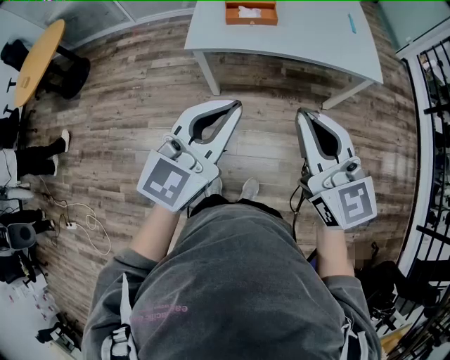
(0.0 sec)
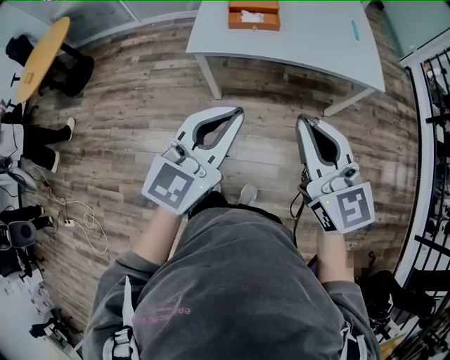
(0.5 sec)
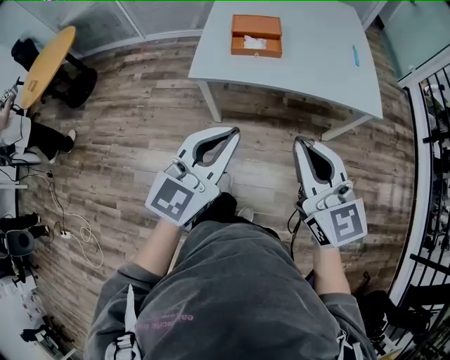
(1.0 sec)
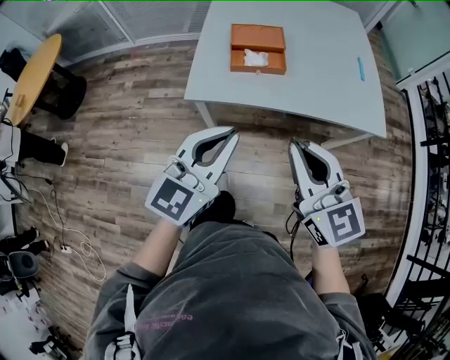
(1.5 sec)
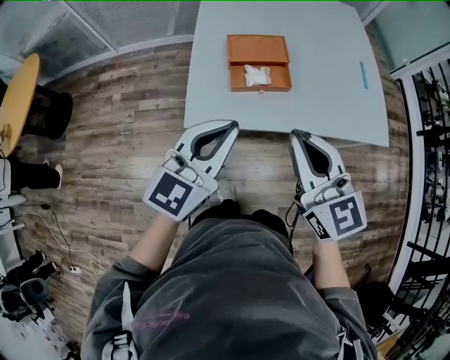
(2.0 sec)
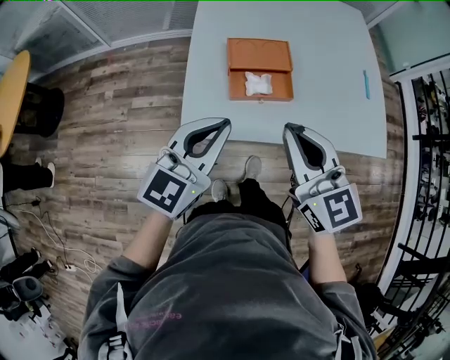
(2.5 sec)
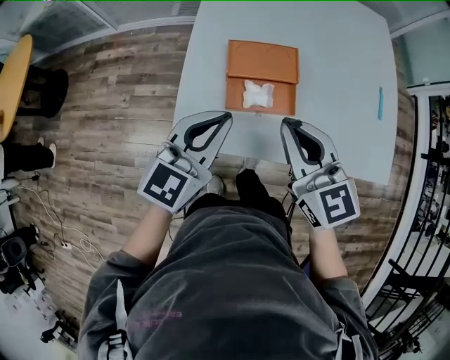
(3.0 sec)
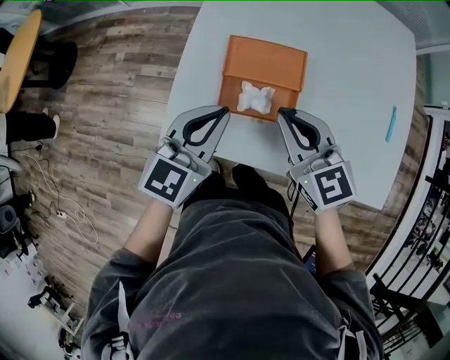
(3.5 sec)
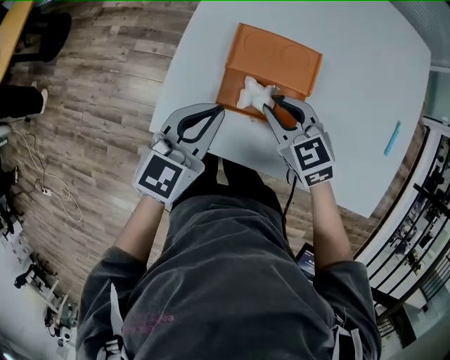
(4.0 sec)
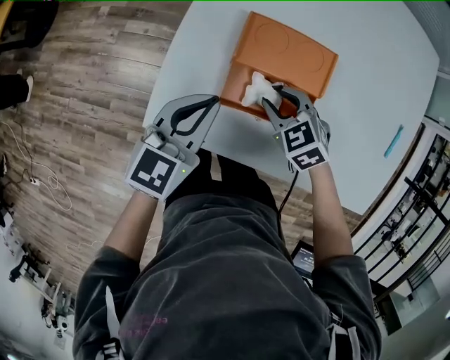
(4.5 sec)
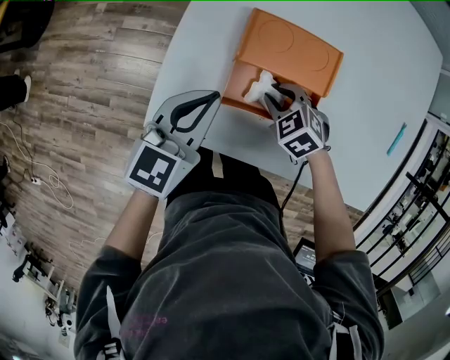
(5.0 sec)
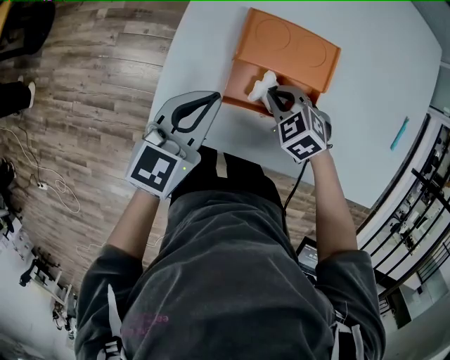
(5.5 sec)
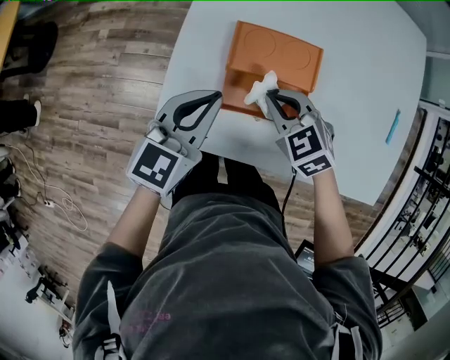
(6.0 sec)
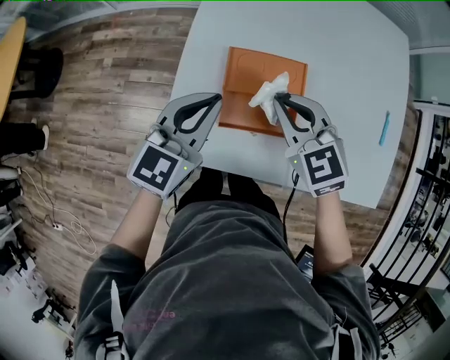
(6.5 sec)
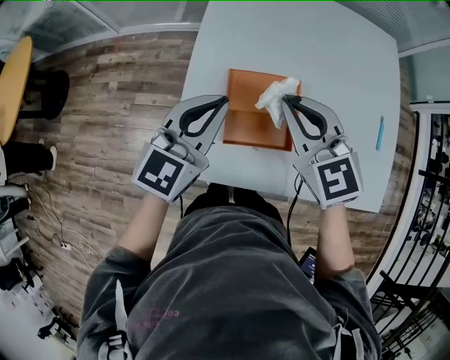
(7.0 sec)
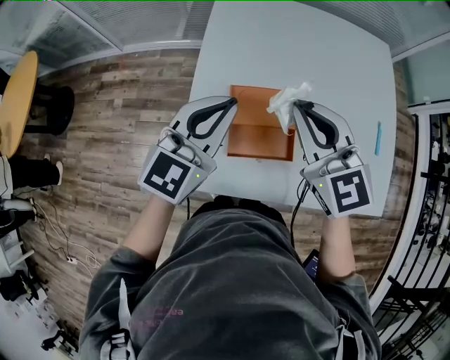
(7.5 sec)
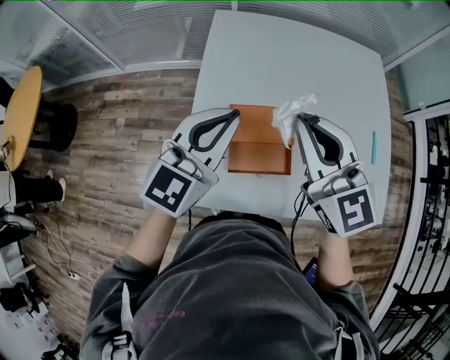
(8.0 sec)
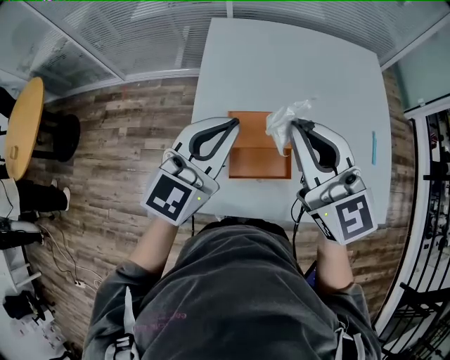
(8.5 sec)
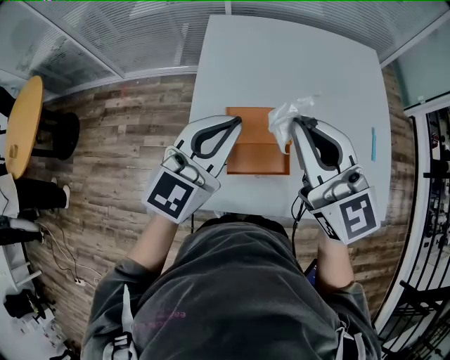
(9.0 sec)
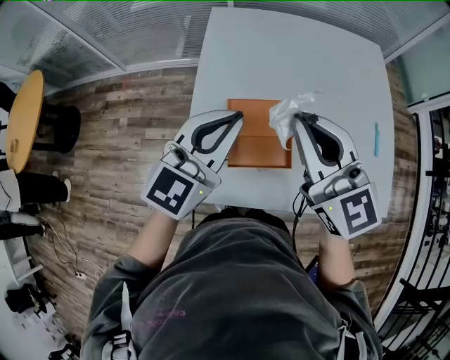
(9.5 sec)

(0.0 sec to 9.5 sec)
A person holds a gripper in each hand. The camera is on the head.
0.0 sec - 2.0 sec: The two grippers go about 35 cm forward.
2.0 sec - 4.0 sec: The grippers both shift forward and downward by roughly 35 cm. The right gripper tips its fingers downward by about 30 degrees, and opens up; the left gripper rotates some 30 degrees.
4.0 sec - 5.5 sec: The right gripper moves downward, roughly 15 cm, and rotates some 30 degrees. The left gripper moves downward, about 5 cm.
5.5 sec - 7.5 sec: The right gripper heads upward, covering about 40 cm, and tips its fingers upward by some 50 degrees; the left gripper moves upward, some 20 cm, and swivels about 30 degrees.

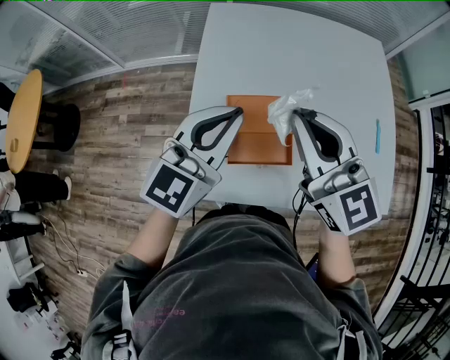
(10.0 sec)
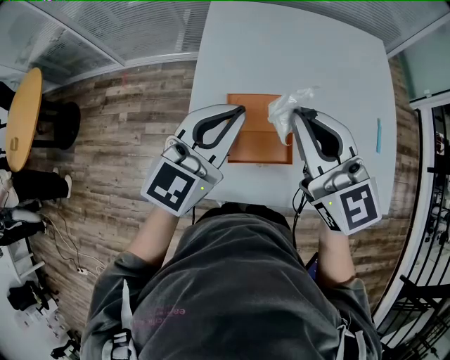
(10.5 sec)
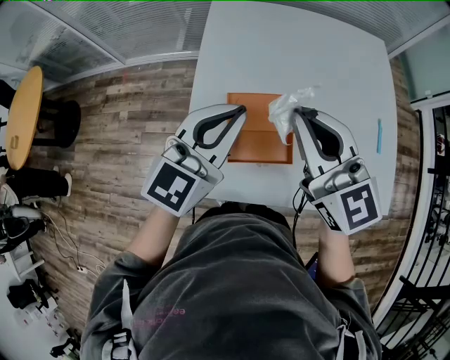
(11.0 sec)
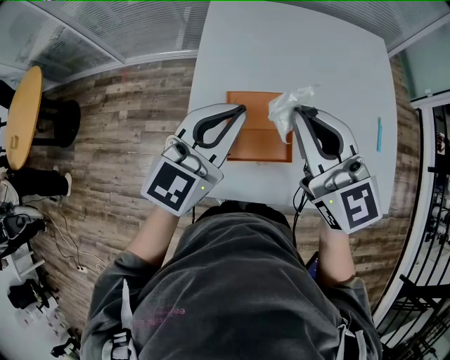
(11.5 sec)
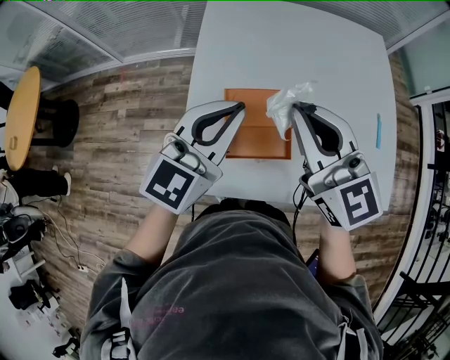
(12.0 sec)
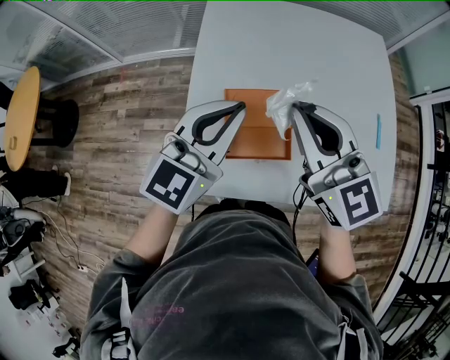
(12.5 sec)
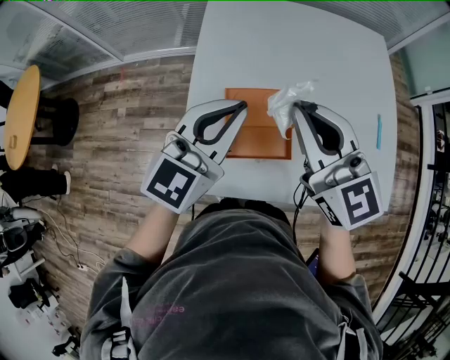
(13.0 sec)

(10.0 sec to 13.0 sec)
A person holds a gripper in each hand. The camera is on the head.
10.0 sec - 13.0 sec: Neither gripper changes place.

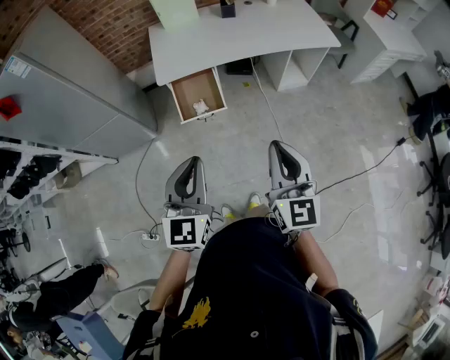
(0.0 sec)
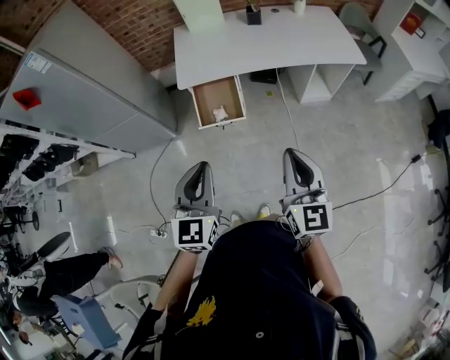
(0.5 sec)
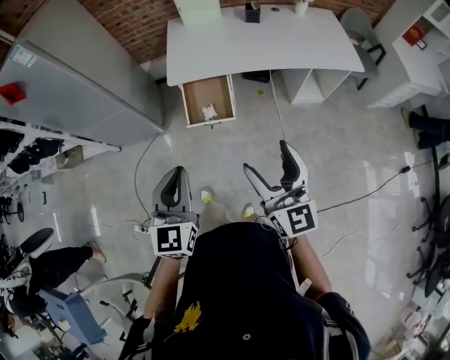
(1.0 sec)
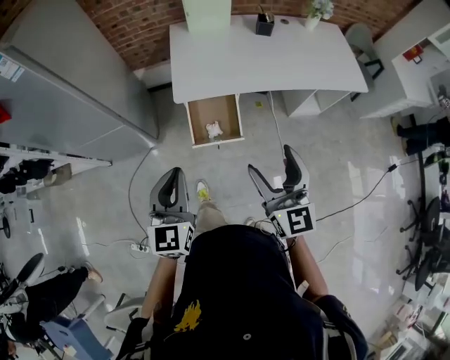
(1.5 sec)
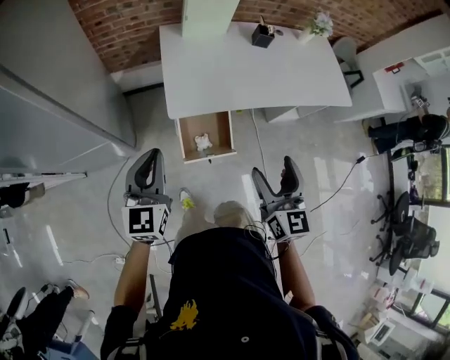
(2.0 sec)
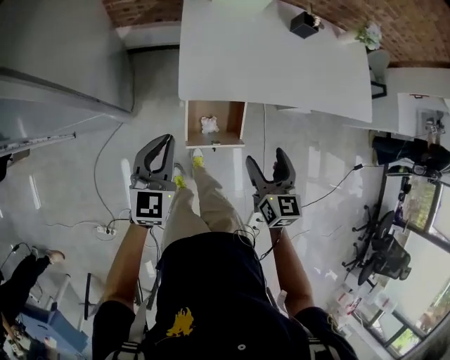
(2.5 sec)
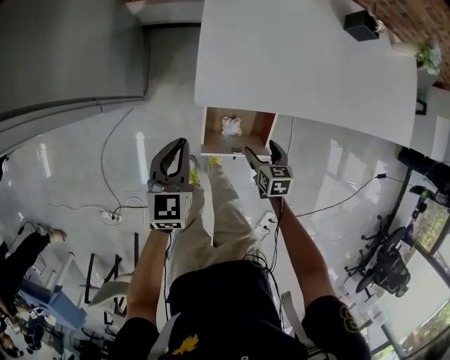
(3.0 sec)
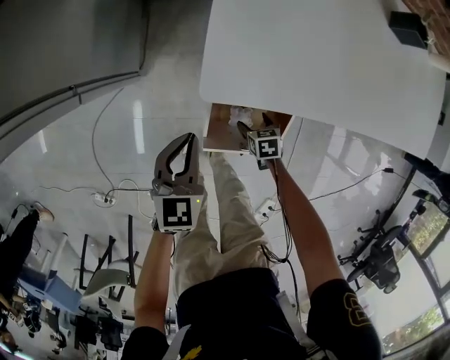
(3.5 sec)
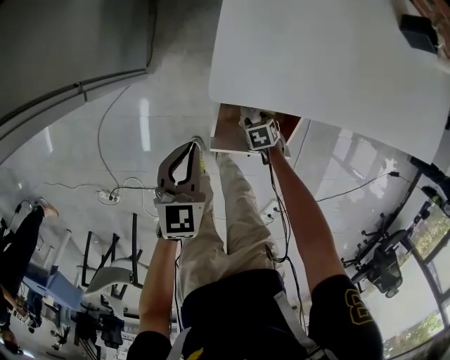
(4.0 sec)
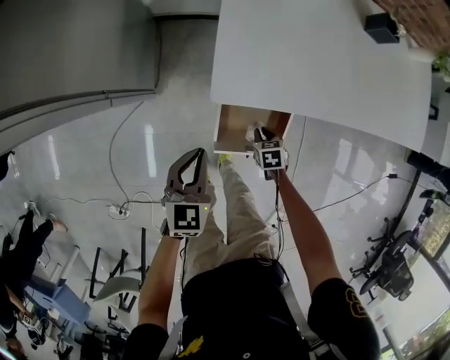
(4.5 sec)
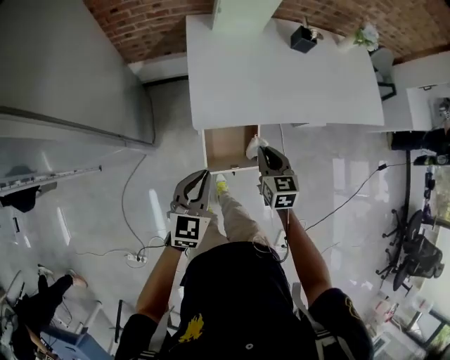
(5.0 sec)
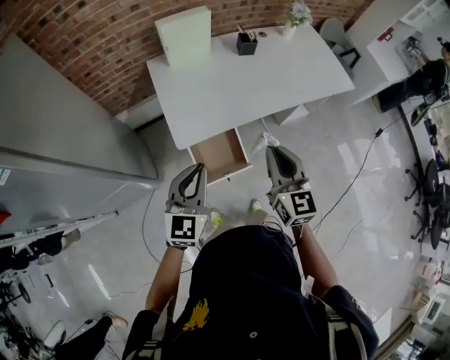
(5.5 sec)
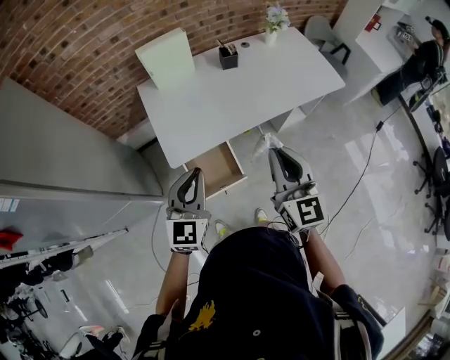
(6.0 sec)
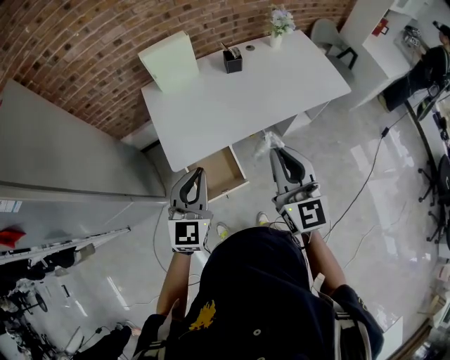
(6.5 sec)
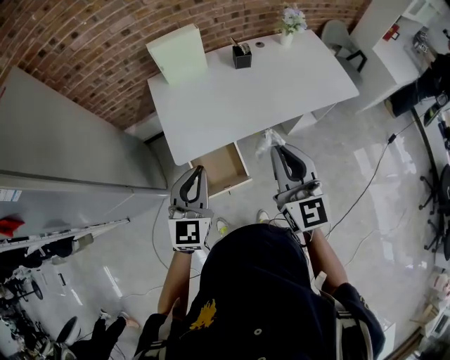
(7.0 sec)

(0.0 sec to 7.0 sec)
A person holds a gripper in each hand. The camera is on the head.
0.0 sec - 2.0 sec: Both grippers travel together forward and to the left, some 40 cm. The right gripper opens up.
2.0 sec - 3.5 sec: The left gripper moves downward, some 40 cm, and rotates about 30 degrees. The right gripper goes some 70 cm downward, and angles its fingers downward, by approximately 60 degrees.
3.5 sec - 5.0 sec: The right gripper moves upward, some 50 cm, points its fingers approximately 30 degrees further upward, and closes up; the left gripper travels upward by some 25 cm, and rotates about 20 degrees.
5.0 sec - 7.0 sec: Both grippers move upward and to the right, about 30 cm. The right gripper tips its fingers upward by roughly 40 degrees.

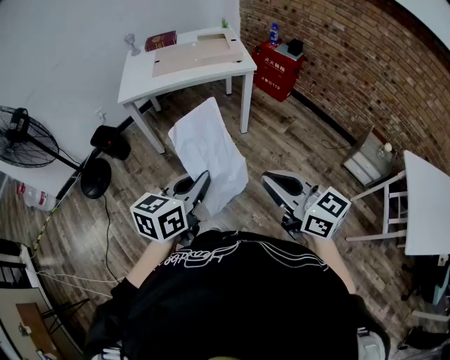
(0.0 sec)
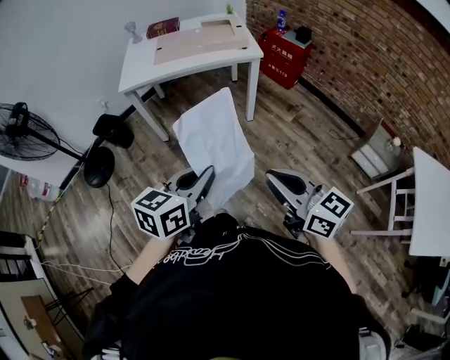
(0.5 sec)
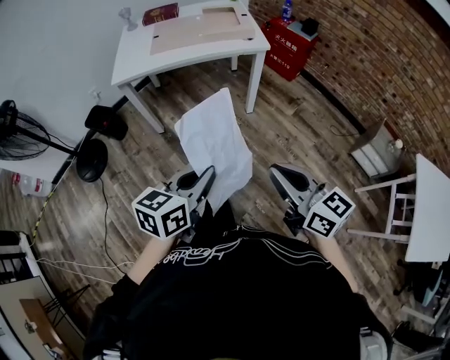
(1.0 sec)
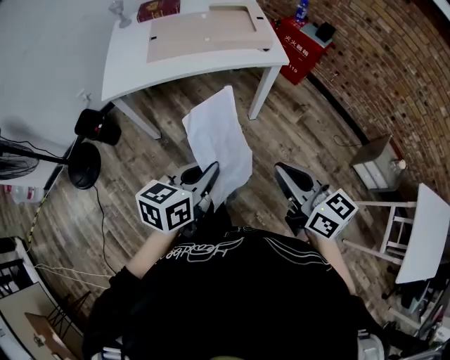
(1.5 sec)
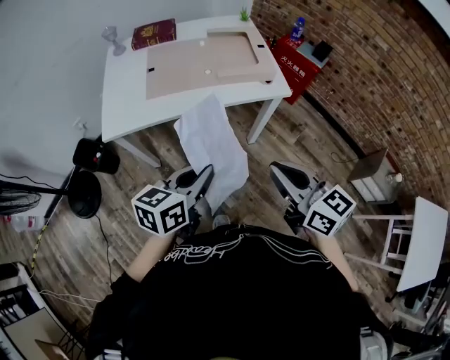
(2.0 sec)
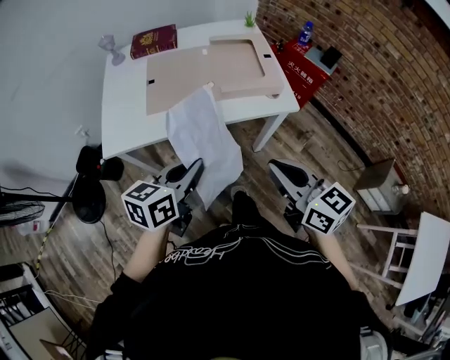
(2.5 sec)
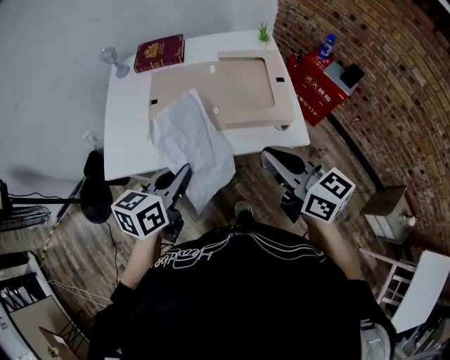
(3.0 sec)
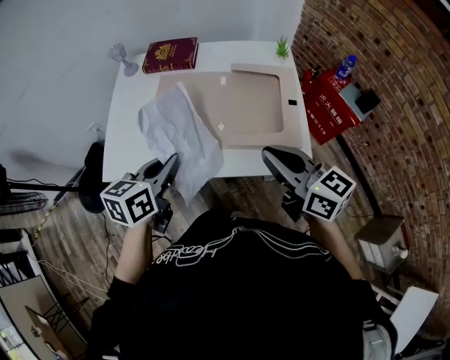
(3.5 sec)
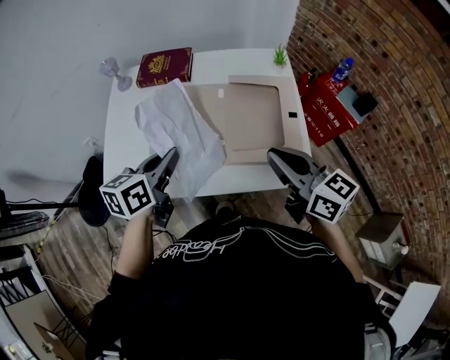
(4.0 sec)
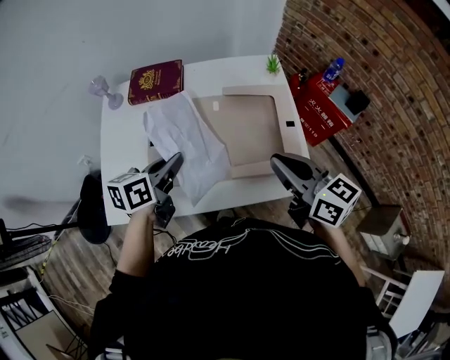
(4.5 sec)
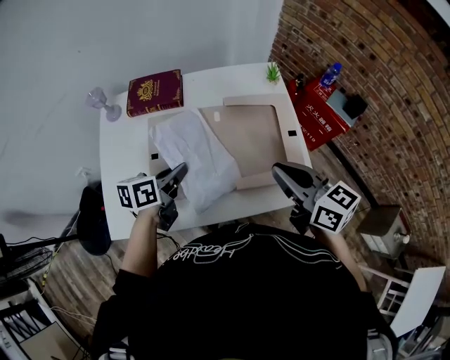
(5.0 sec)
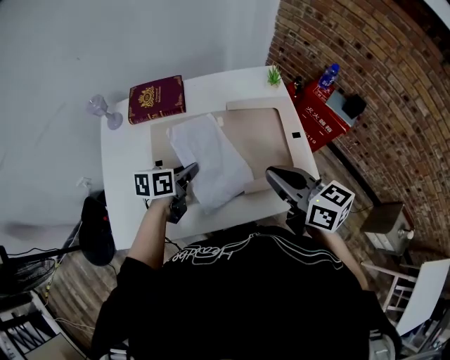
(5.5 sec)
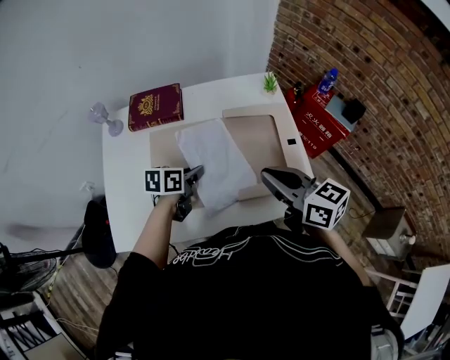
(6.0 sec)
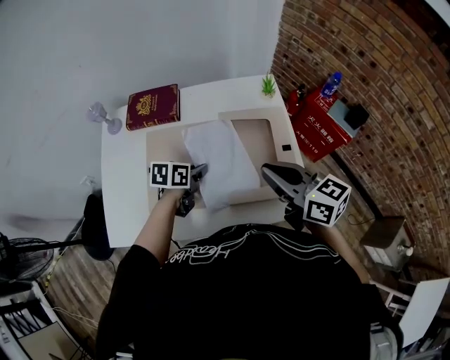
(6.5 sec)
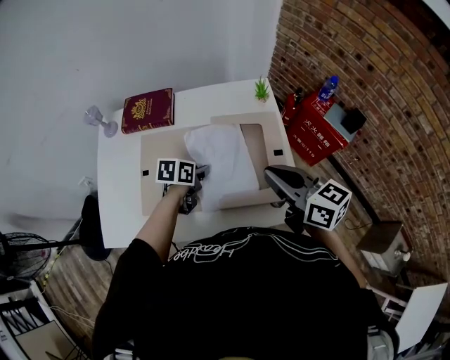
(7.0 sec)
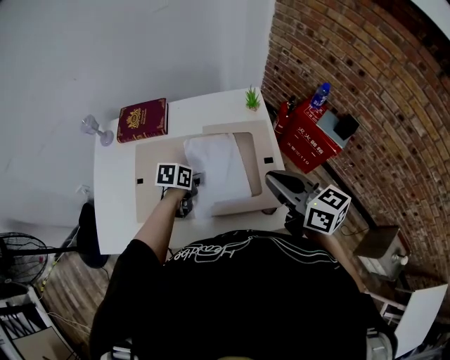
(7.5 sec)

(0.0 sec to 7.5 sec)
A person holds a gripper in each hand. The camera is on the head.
0.0 sec - 2.0 sec: The grippers both shift forward by roughly 35 cm.
2.0 sec - 4.0 sec: Both grippers move forward, roughly 35 cm. The left gripper turns by roughly 20 degrees.
4.0 sec - 5.5 sec: The right gripper changes place by roughly 5 cm; the left gripper shifts roughly 15 cm downward and forward, and changes its angle by roughly 20 degrees.
5.5 sec - 7.5 sec: The right gripper shifts some 10 cm to the right. The left gripper heads to the right and downward, covering roughly 10 cm.
